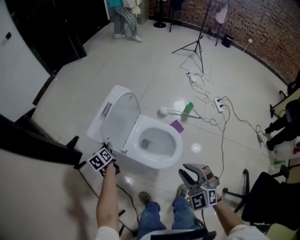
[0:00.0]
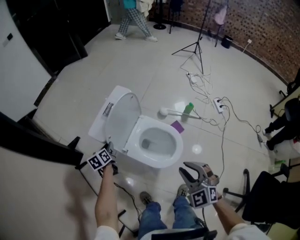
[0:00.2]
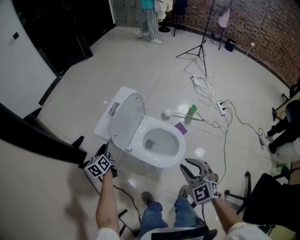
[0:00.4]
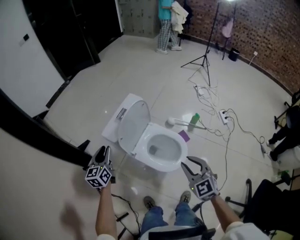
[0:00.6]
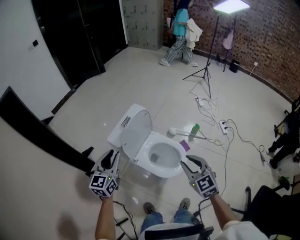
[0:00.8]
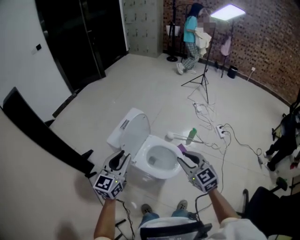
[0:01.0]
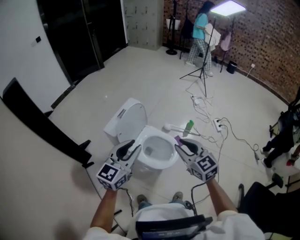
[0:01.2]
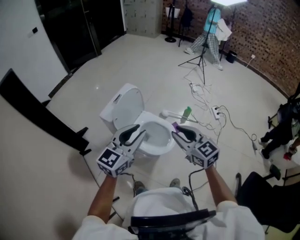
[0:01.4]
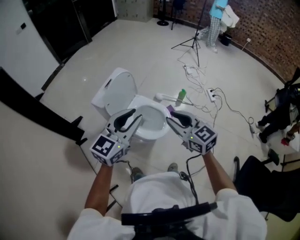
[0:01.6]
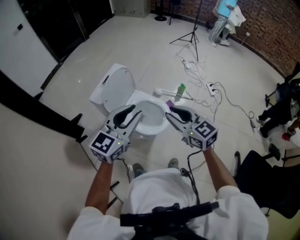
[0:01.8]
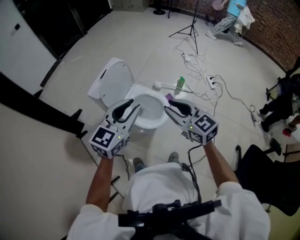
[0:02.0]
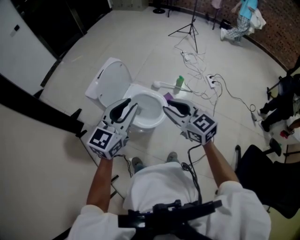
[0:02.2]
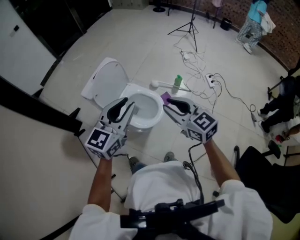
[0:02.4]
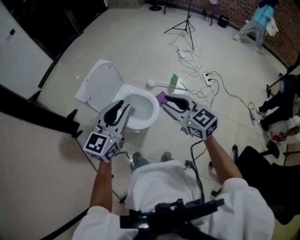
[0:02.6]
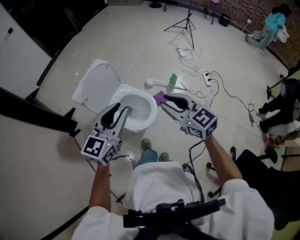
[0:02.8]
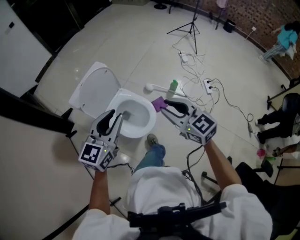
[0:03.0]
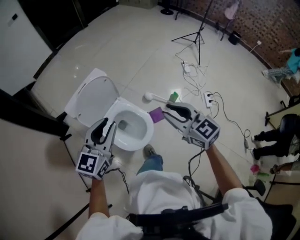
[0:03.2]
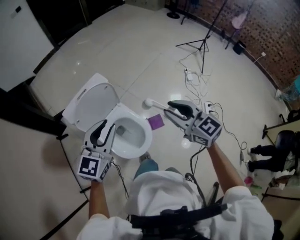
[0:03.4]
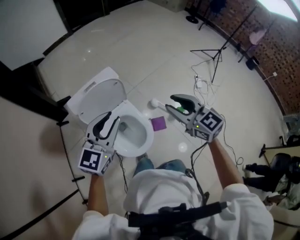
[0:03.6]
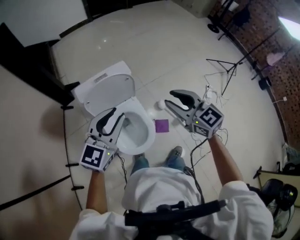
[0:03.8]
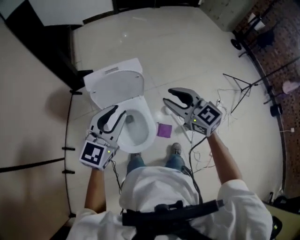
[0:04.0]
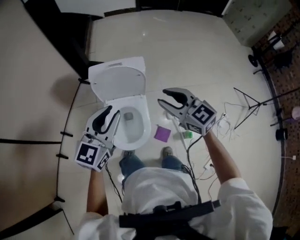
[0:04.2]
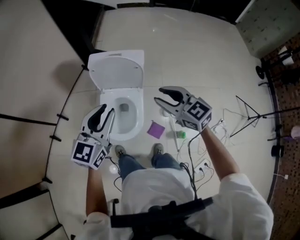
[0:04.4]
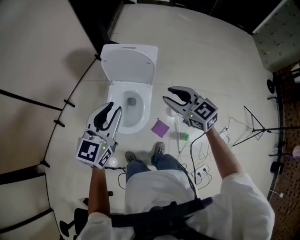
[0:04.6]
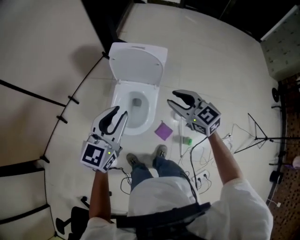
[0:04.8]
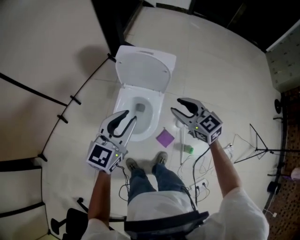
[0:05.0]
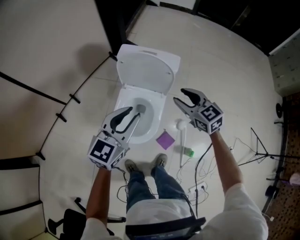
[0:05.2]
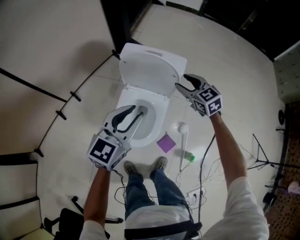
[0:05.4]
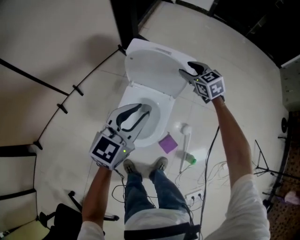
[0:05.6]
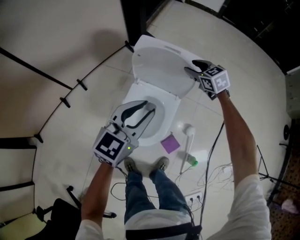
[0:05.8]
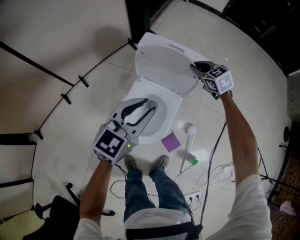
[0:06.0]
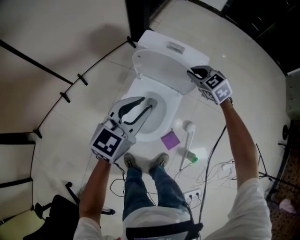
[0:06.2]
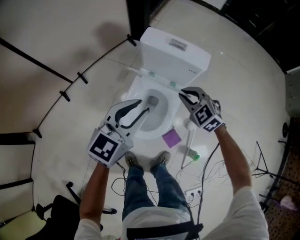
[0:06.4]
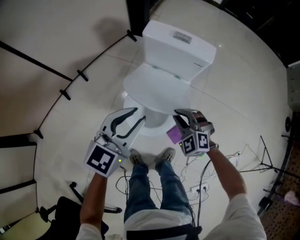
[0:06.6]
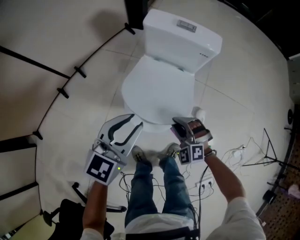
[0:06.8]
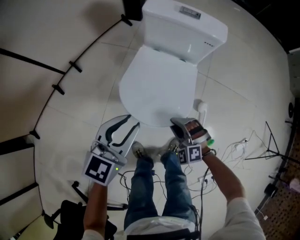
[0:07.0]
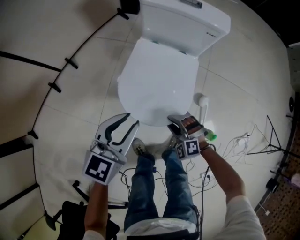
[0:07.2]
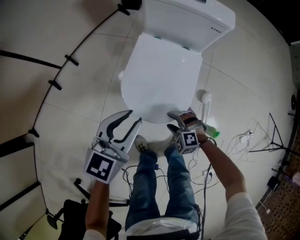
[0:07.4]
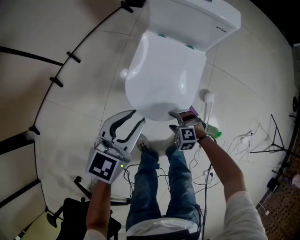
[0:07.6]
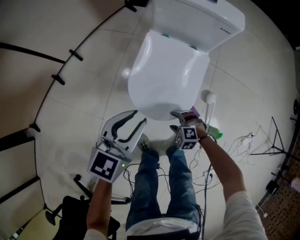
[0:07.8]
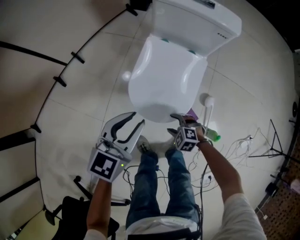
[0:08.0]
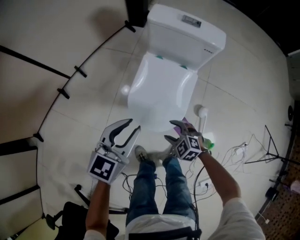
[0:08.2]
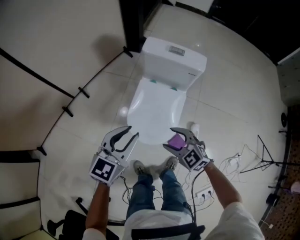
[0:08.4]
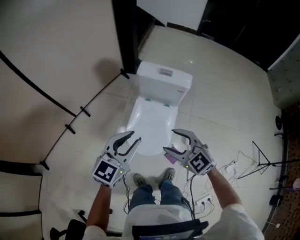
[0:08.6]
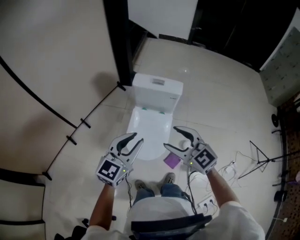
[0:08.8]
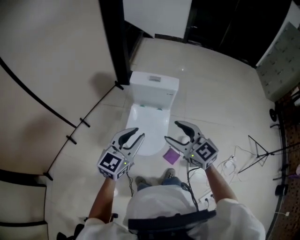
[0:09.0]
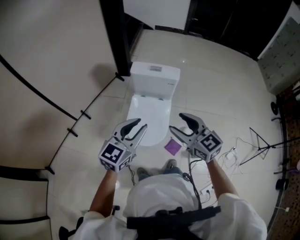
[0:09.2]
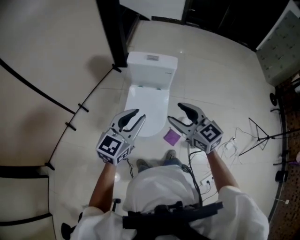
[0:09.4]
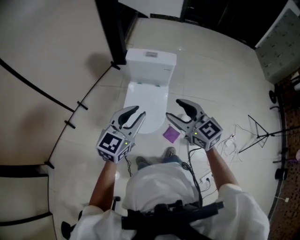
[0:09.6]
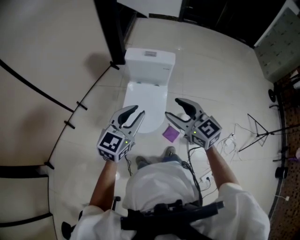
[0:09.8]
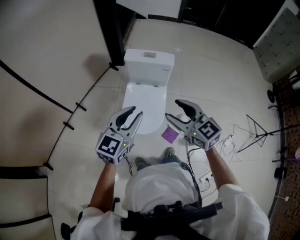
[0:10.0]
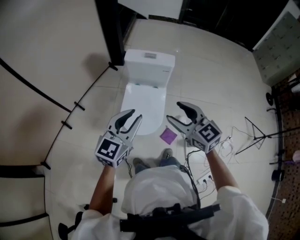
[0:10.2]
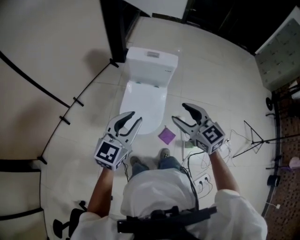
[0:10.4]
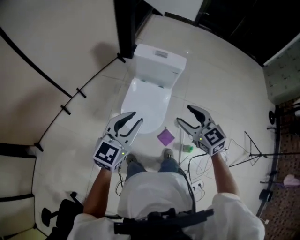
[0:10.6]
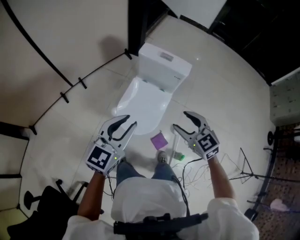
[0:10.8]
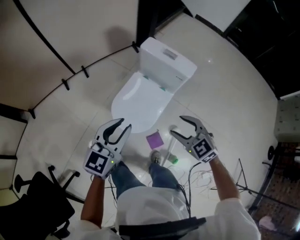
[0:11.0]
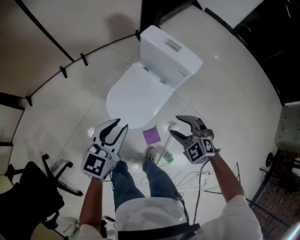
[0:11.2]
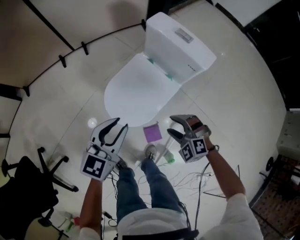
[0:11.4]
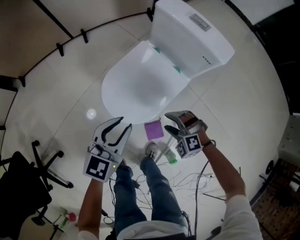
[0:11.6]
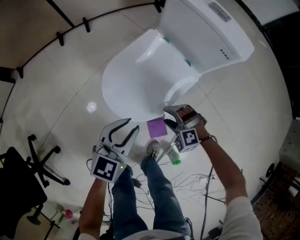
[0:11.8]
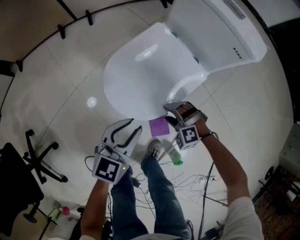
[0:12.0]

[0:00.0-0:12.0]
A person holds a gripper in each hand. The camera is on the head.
0:00.0 to 0:01.6: The right gripper heads upward, covering approximately 15 cm, and rotates about 40 degrees; the left gripper travels upward, to the right and backward by roughly 50 cm, and tilts its fingers approximately 40 degrees upward.
0:01.6 to 0:03.0: The left gripper goes some 15 cm to the right, forward and downward. The right gripper goes approximately 15 cm to the right and forward.
0:03.0 to 0:04.4: The right gripper changes place by about 30 cm, and changes its angle by approximately 60 degrees, while the left gripper shifts by about 15 cm, and swivels roughly 60 degrees.
0:04.4 to 0:06.0: The right gripper moves forward and downward, about 35 cm, and turns by approximately 30 degrees. The left gripper shifts roughly 10 cm downward and forward.
0:06.0 to 0:07.6: The left gripper heads downward, to the left and backward, covering roughly 25 cm. The right gripper moves backward and downward, roughly 50 cm, turns by roughly 50 degrees, and opens up.
0:07.6 to 0:09.0: The left gripper travels upward by approximately 25 cm. Meanwhile the right gripper goes about 60 cm upward, and points its fingers about 50 degrees further upward.
0:09.0 to 0:10.4: The grippers make only small movements.
0:10.4 to 0:12.0: The two grippers go some 50 cm downward. The left gripper turns by about 40 degrees. Meanwhile the right gripper twists approximately 80 degrees counterclockwise, seen from behind.

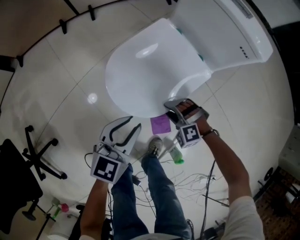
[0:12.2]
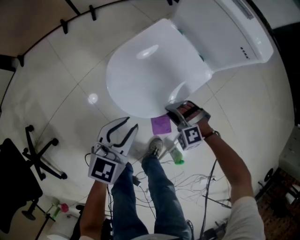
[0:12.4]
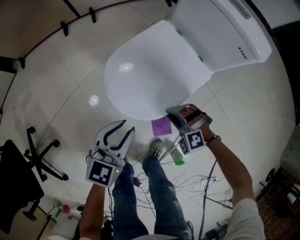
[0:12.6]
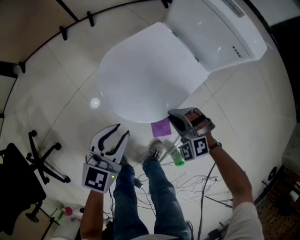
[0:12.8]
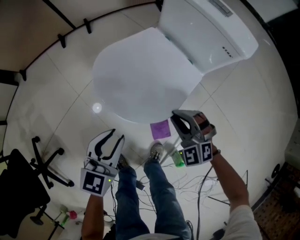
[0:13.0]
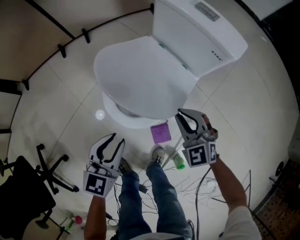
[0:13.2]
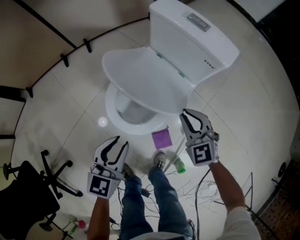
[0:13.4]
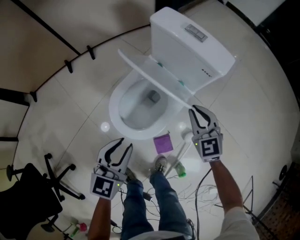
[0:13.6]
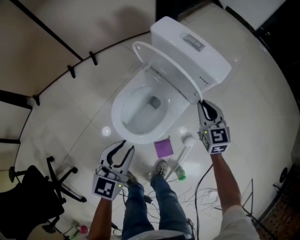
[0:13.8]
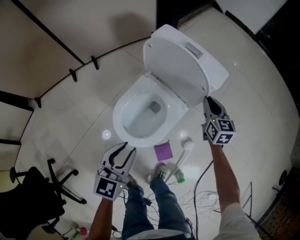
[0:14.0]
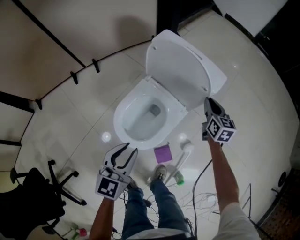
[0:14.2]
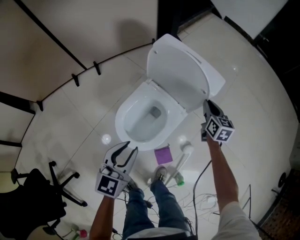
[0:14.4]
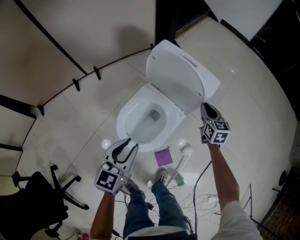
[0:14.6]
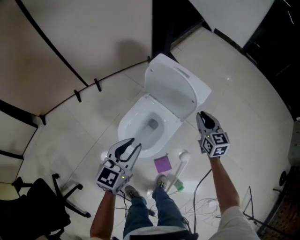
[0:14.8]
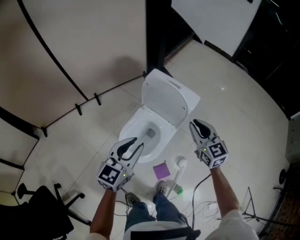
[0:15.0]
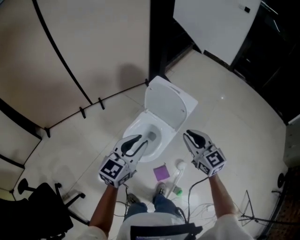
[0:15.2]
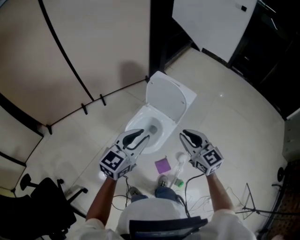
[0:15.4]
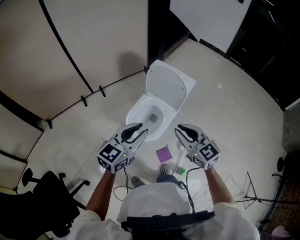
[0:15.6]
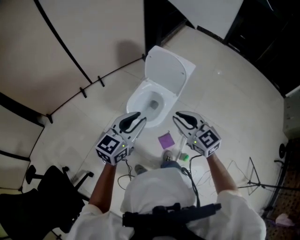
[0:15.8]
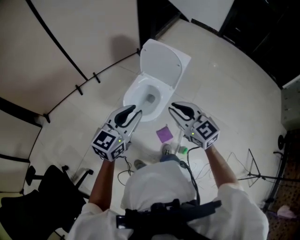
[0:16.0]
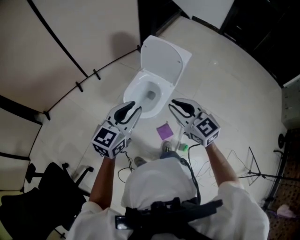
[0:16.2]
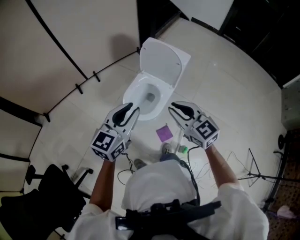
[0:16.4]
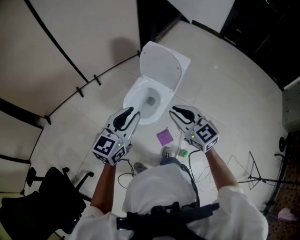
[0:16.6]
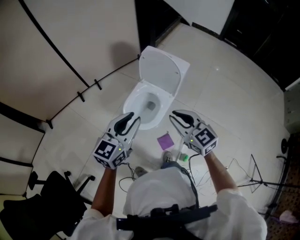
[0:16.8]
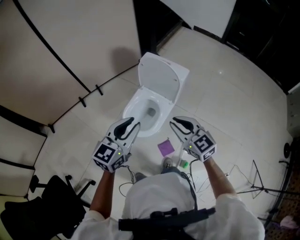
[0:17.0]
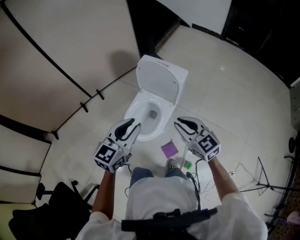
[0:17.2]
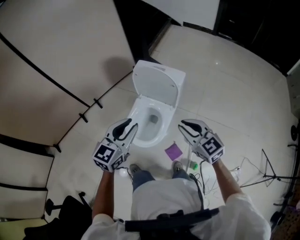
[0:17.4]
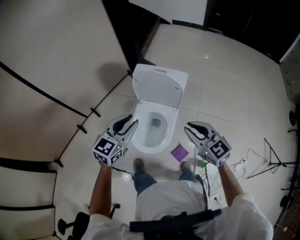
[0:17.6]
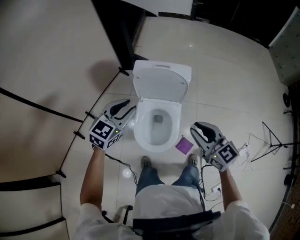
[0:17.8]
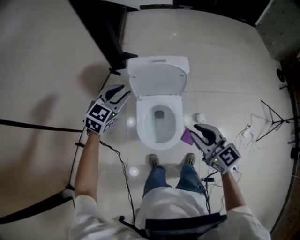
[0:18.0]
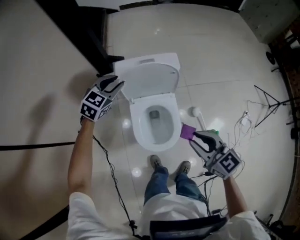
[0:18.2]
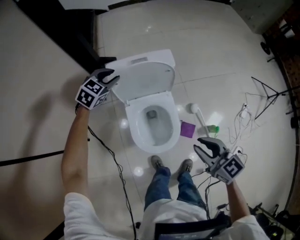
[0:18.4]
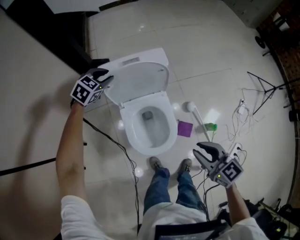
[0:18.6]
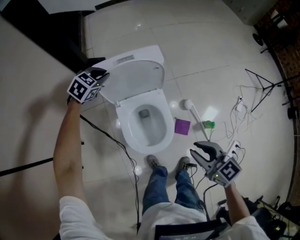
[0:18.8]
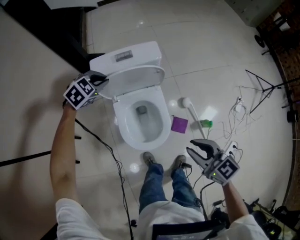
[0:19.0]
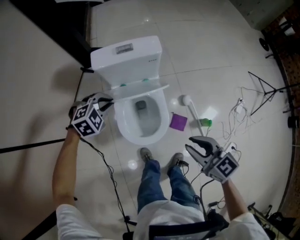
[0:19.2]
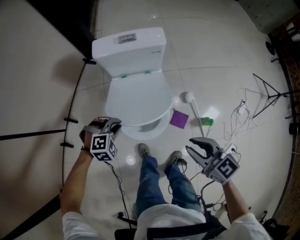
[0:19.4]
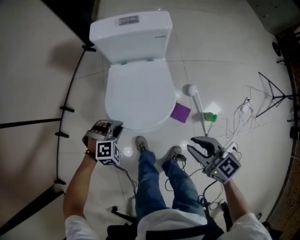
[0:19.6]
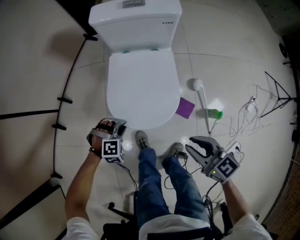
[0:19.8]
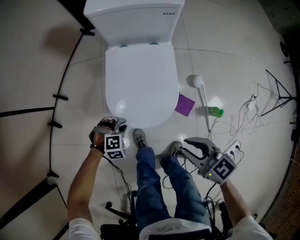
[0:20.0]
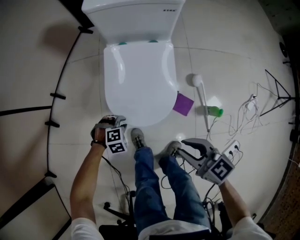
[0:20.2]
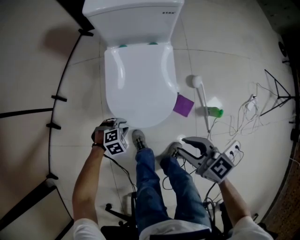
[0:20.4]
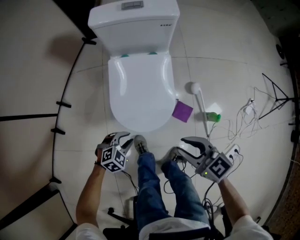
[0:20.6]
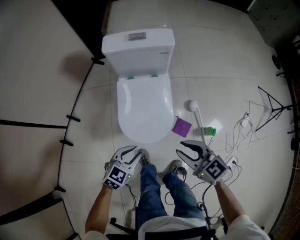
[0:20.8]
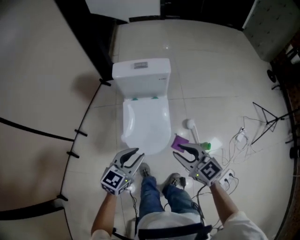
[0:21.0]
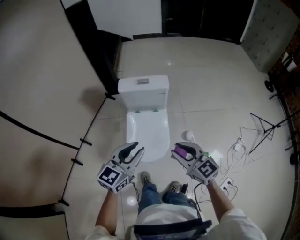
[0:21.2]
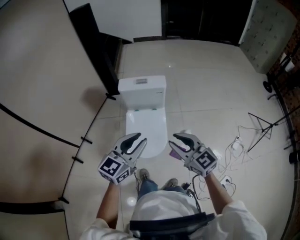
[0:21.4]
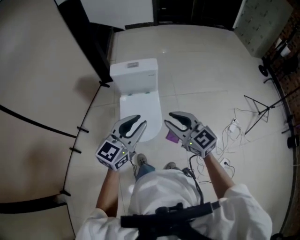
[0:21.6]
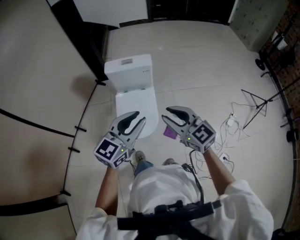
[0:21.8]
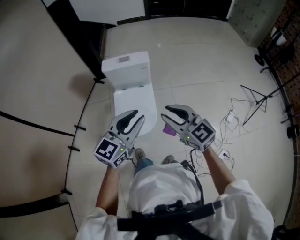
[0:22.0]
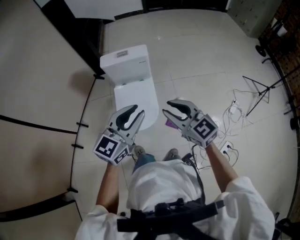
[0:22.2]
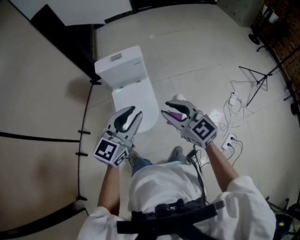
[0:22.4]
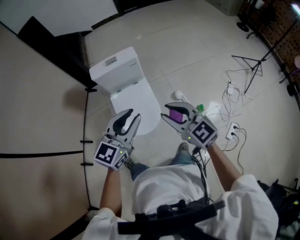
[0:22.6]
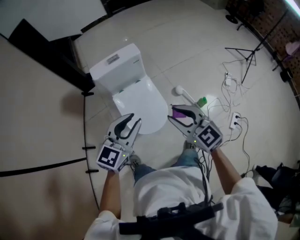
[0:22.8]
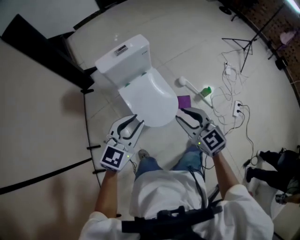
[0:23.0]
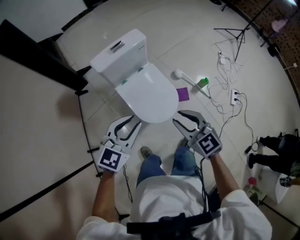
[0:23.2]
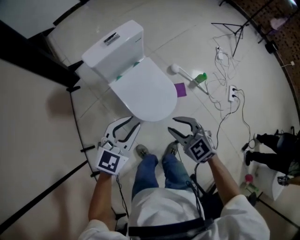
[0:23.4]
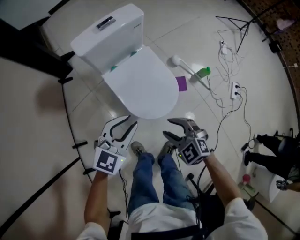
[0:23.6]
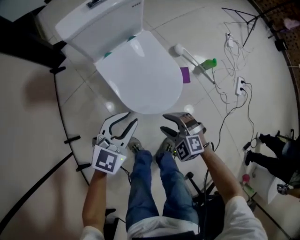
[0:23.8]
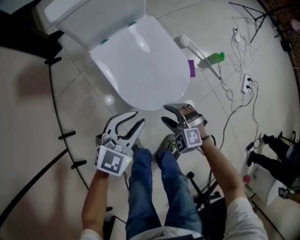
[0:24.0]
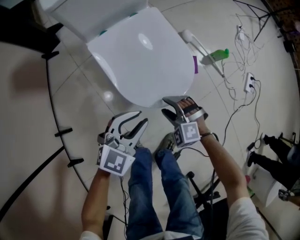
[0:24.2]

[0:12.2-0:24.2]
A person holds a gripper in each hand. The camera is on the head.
0:12.2 to 0:13.8: The left gripper is displaced upward by about 15 cm; the right gripper shifts about 35 cm upward, to the right and forward, rotates around the line of its fingers by approximately 70 degrees, clockwise from behind, and closes.
0:13.8 to 0:15.2: The left gripper goes some 25 cm upward, while the right gripper heads upward and backward, covering approximately 30 cm.
0:15.2 to 0:16.6: The right gripper is displaced backward and to the left by about 15 cm; the left gripper travels backward by about 10 cm.
0:16.6 to 0:18.2: The left gripper changes place by approximately 50 cm, and changes its angle by approximately 60 degrees, while the right gripper moves approximately 15 cm, and changes its angle by about 40 degrees.
0:18.2 to 0:19.8: The left gripper goes about 50 cm downward and backward, and tips its fingers downward by roughly 40 degrees. The right gripper heads downward and backward, covering about 25 cm.
0:19.8 to 0:21.2: The left gripper goes roughly 40 cm upward, and points its fingers roughly 60 degrees further upward. The right gripper moves upward, about 25 cm, and rotates about 20 degrees.
0:21.2 to 0:22.6: The right gripper ends up about 5 cm from where it was. Meanwhile the left gripper is displaced to the right by about 5 cm.
0:22.6 to 0:24.2: Both grippers travel together downward, roughly 50 cm. The left gripper rotates roughly 30 degrees. Meanwhile the right gripper tilts its fingers roughly 40 degrees downward, and opens.
